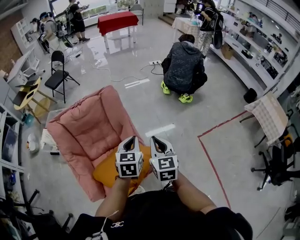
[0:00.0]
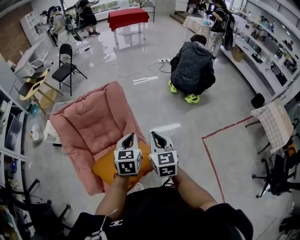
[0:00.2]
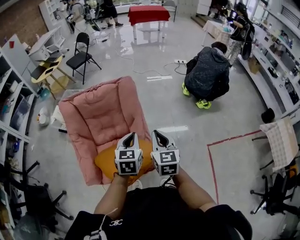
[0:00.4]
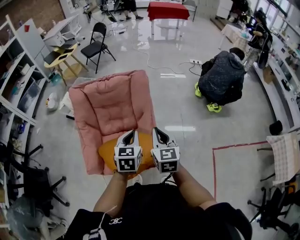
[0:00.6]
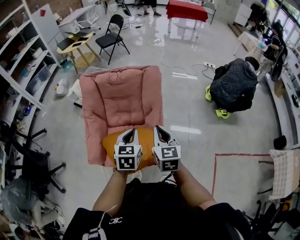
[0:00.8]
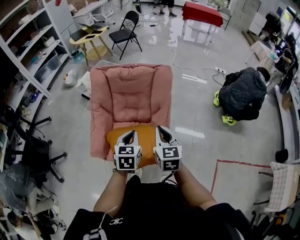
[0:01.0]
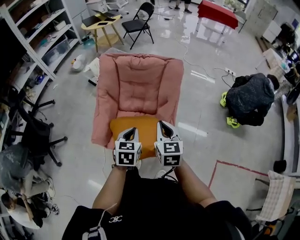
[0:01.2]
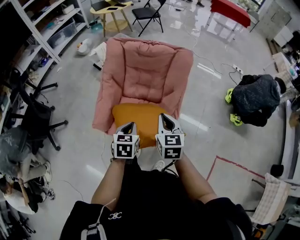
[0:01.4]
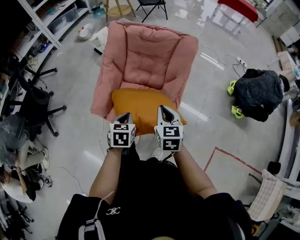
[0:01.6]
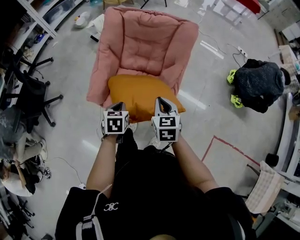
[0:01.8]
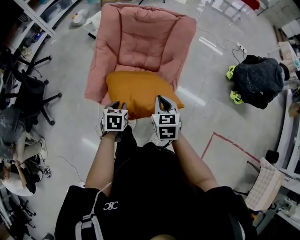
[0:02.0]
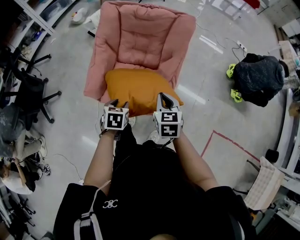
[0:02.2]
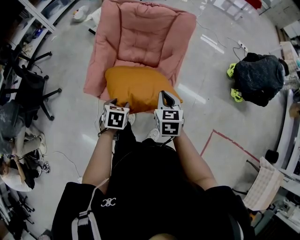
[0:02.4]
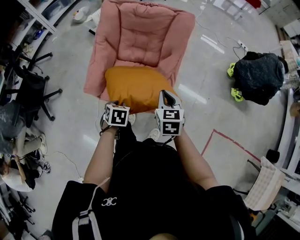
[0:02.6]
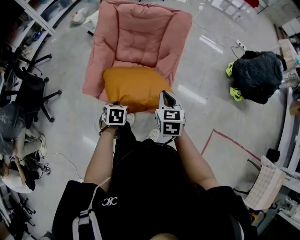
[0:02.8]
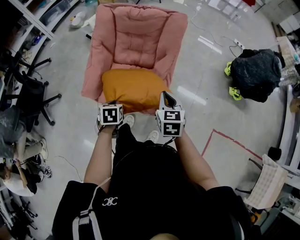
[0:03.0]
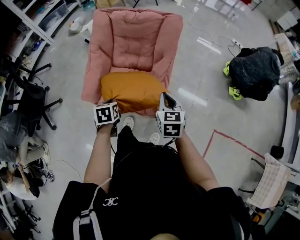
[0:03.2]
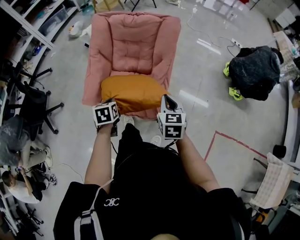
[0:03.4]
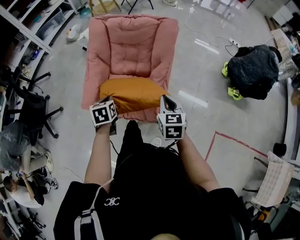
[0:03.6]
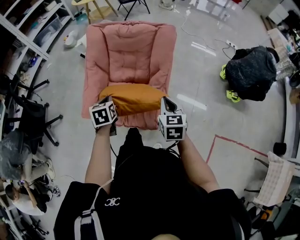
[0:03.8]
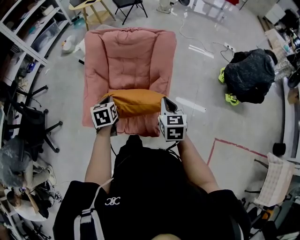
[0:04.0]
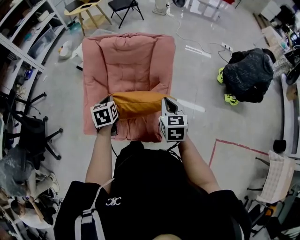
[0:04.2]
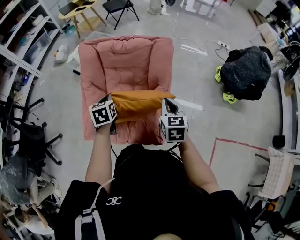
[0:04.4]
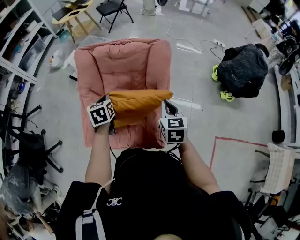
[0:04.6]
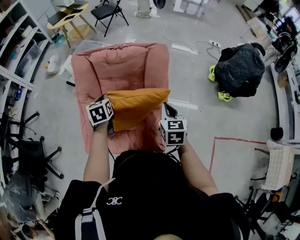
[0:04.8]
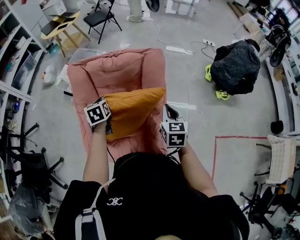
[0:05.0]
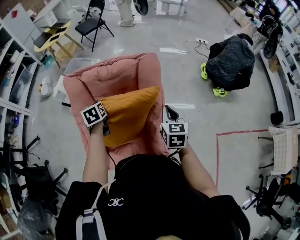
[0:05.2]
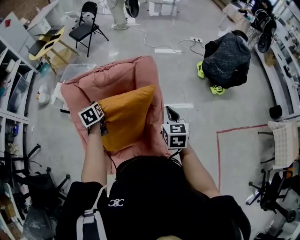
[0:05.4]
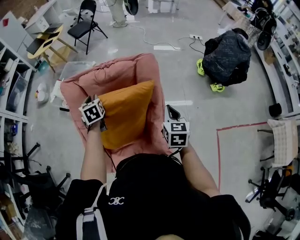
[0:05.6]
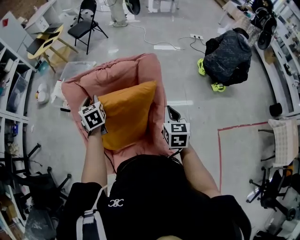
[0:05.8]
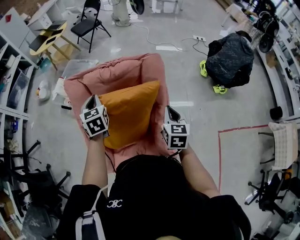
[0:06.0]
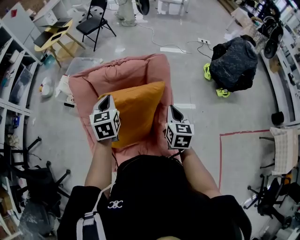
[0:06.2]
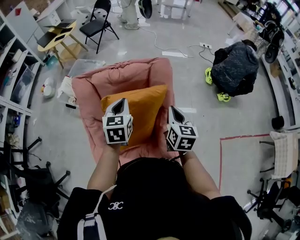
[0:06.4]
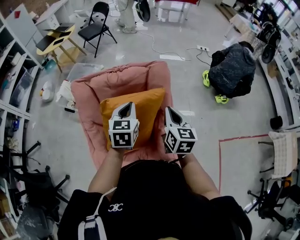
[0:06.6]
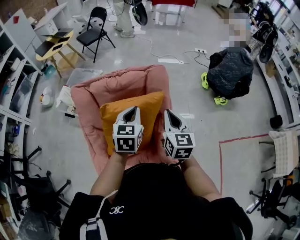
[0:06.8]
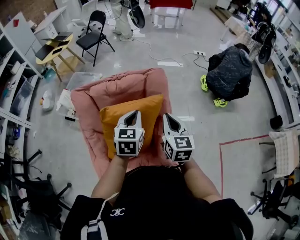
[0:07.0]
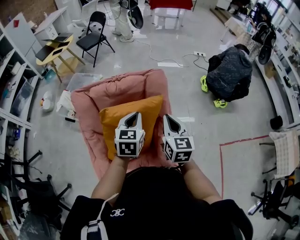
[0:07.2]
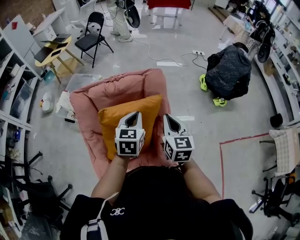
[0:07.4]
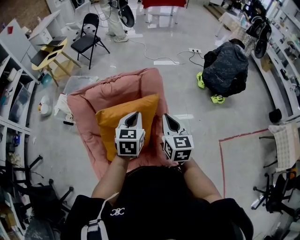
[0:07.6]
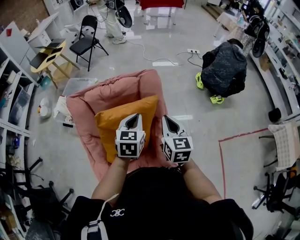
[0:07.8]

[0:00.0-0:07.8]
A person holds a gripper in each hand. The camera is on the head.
0:00.0 to 0:01.6: The left gripper moves approximately 25 cm, and rotates roughly 50 degrees. The right gripper moves approximately 15 cm, and changes its angle by approximately 40 degrees.
0:01.6 to 0:03.2: The left gripper opens, then closes once more, while the right gripper shifts about 10 cm to the right.
0:03.2 to 0:04.6: The left gripper goes some 30 cm forward. Meanwhile the right gripper travels forward by about 15 cm.
0:04.6 to 0:06.2: The right gripper moves forward, some 5 cm, and swivels roughly 20 degrees; the left gripper travels forward and upward by about 15 cm, swivels about 20 degrees, and opens and closes again.
0:06.2 to 0:07.8: The right gripper travels upward by about 5 cm; the left gripper shifts about 15 cm to the right, and turns by roughly 20 degrees.

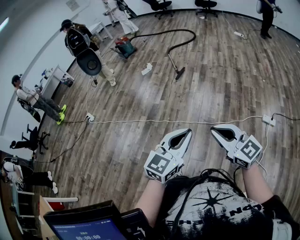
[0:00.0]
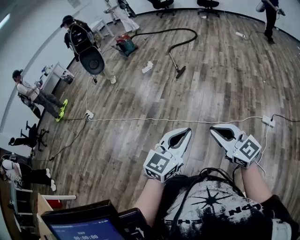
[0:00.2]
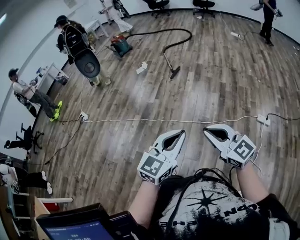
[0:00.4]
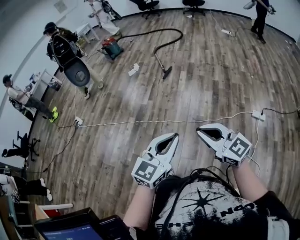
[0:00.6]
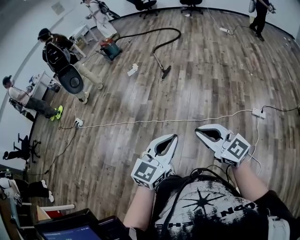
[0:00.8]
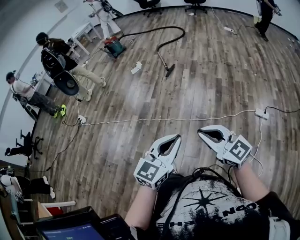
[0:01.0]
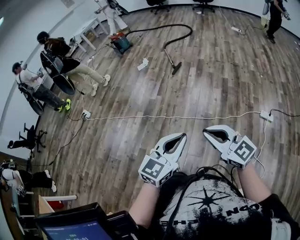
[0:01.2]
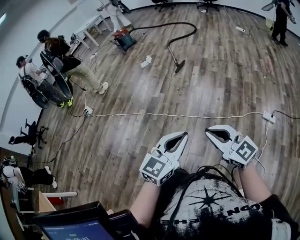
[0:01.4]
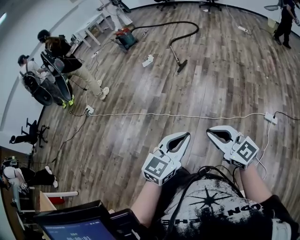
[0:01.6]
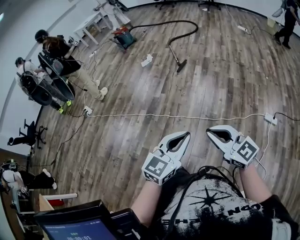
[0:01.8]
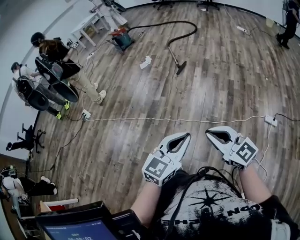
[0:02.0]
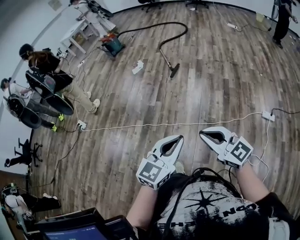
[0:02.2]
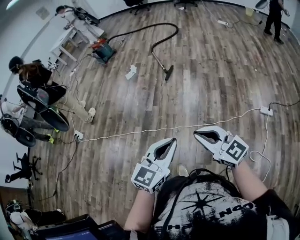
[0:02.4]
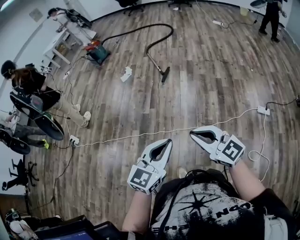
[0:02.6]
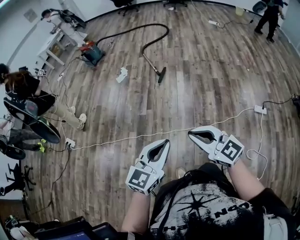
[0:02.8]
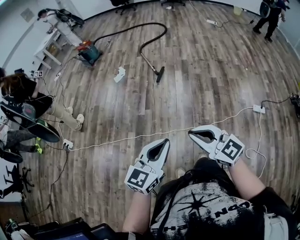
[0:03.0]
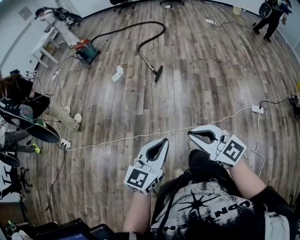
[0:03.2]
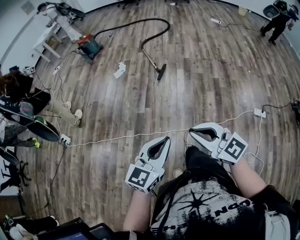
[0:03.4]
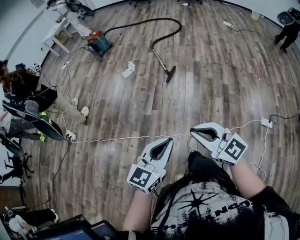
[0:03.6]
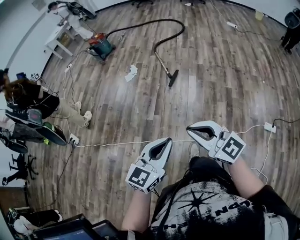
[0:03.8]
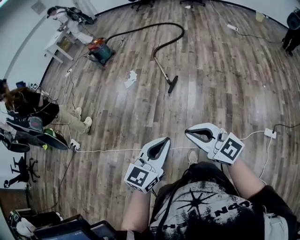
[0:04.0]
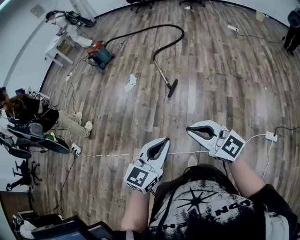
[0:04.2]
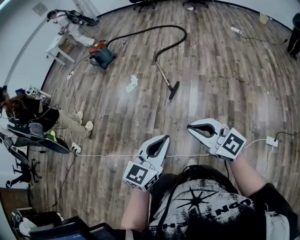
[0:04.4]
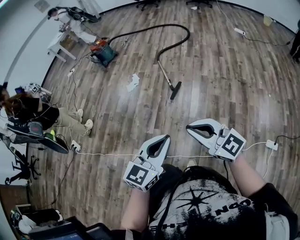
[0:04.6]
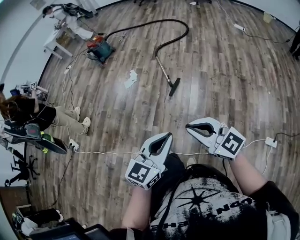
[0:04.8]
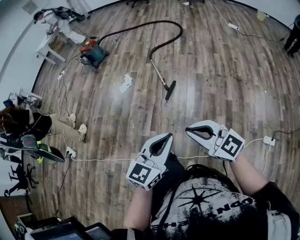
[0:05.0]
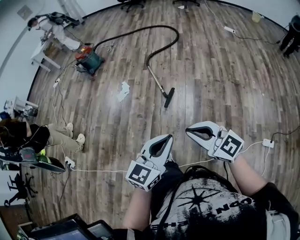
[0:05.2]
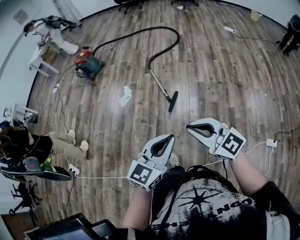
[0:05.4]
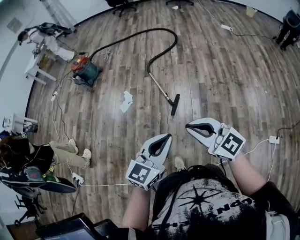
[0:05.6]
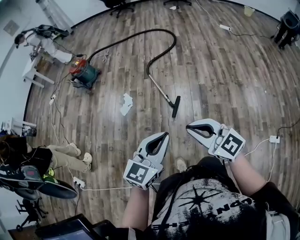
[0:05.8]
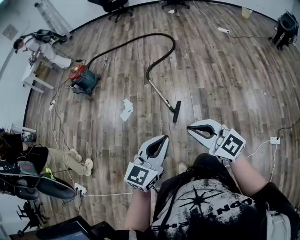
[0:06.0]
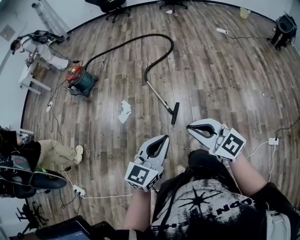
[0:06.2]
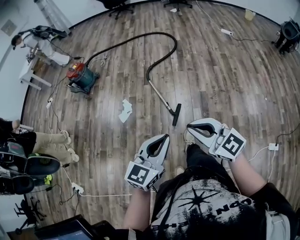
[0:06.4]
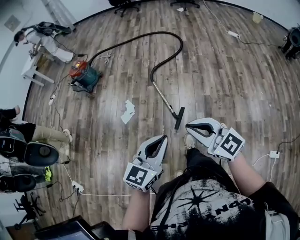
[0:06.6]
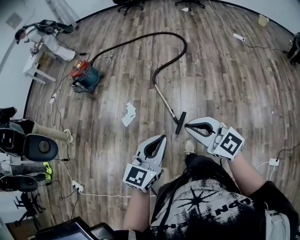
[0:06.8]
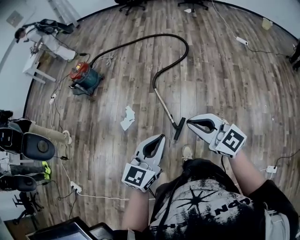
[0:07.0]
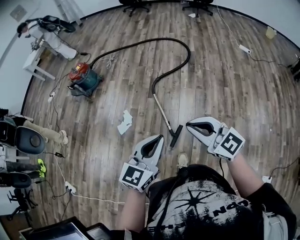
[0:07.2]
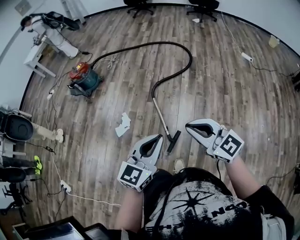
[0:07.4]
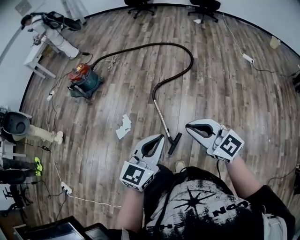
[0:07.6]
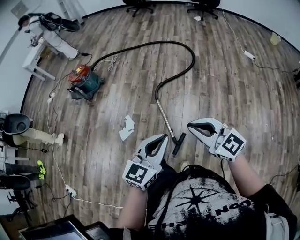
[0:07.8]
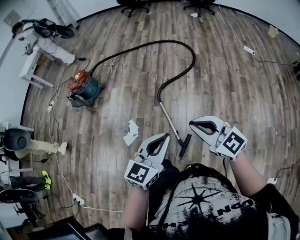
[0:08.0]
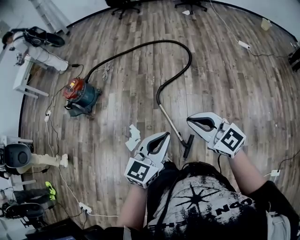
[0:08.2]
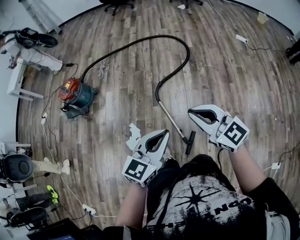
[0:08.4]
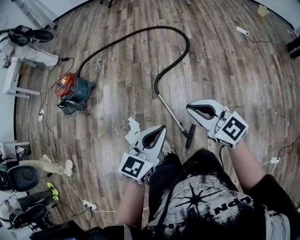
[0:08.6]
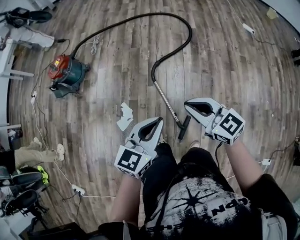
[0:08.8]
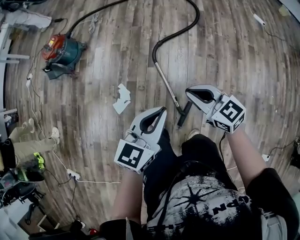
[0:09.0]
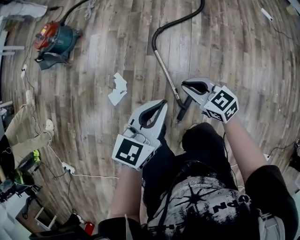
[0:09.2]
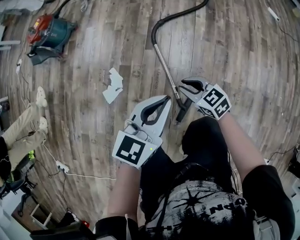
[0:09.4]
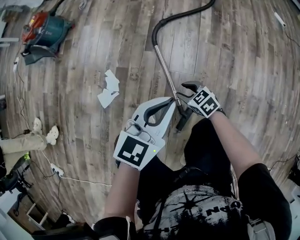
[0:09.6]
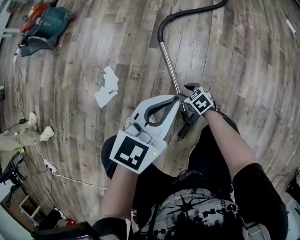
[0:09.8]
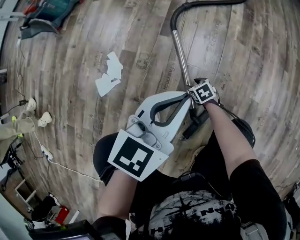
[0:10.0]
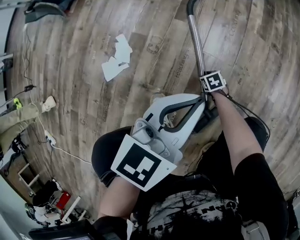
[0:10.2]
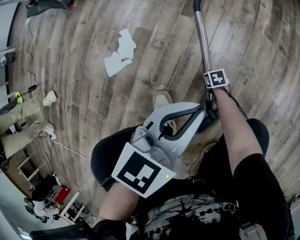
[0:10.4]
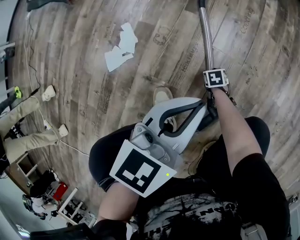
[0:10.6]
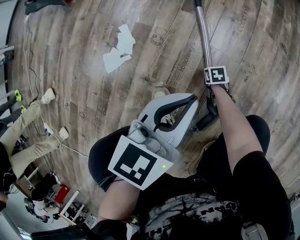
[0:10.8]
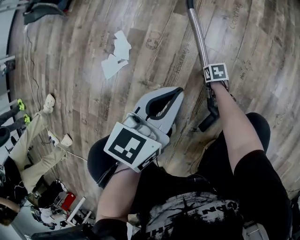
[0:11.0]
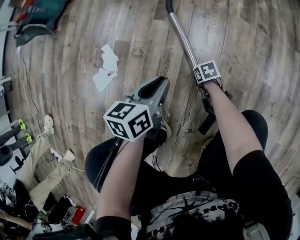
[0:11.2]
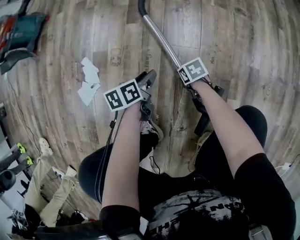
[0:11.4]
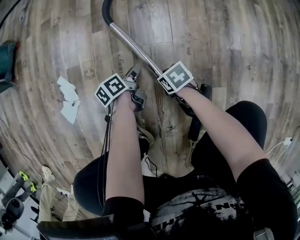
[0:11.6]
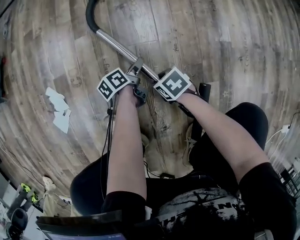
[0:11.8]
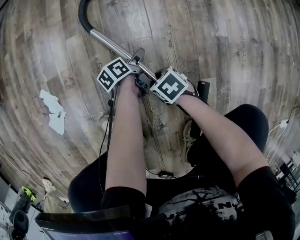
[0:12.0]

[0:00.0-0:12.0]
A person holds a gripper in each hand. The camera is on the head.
0:00.0 to 0:01.6: The grippers stay close to where they were, moving slightly.
0:01.6 to 0:03.0: Both grippers move forward and to the left, approximately 35 cm.
0:03.0 to 0:04.4: Both grippers travel together forward and to the right, approximately 35 cm.
0:04.4 to 0:06.0: The two grippers go roughly 35 cm forward.
0:06.0 to 0:07.6: Both grippers move forward, about 35 cm.
0:07.6 to 0:09.0: The two grippers go roughly 30 cm forward, downward and to the left. The right gripper rotates some 20 degrees.
0:09.0 to 0:10.4: The right gripper shifts about 80 cm downward, tilts its fingers roughly 50 degrees downward, and opens its fingers. The left gripper moves downward, approximately 40 cm.
0:10.4 to 0:12.0: The right gripper shifts by approximately 15 cm. The left gripper goes some 40 cm downward, twists roughly 60 degrees counterclockwise, seen from behind, and opens up.

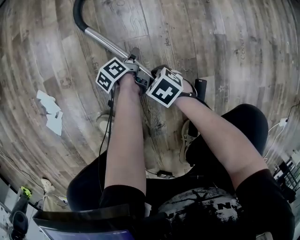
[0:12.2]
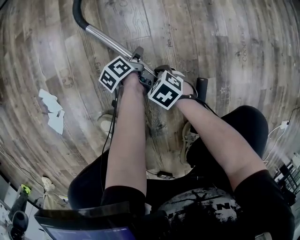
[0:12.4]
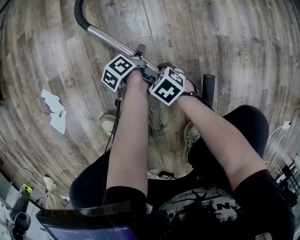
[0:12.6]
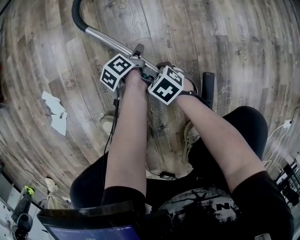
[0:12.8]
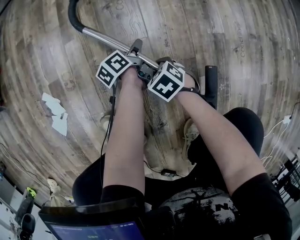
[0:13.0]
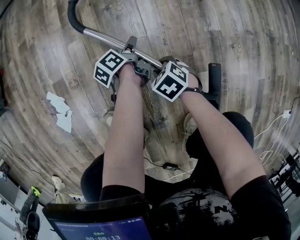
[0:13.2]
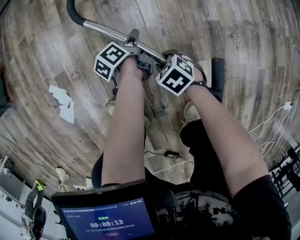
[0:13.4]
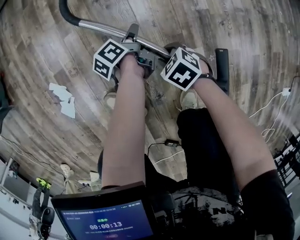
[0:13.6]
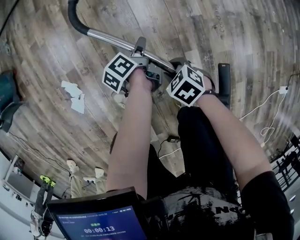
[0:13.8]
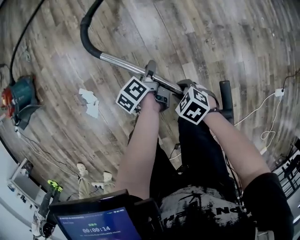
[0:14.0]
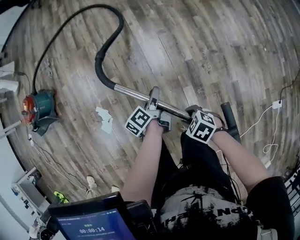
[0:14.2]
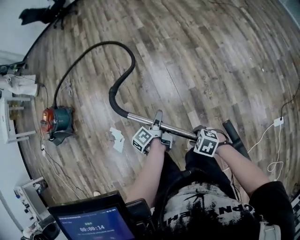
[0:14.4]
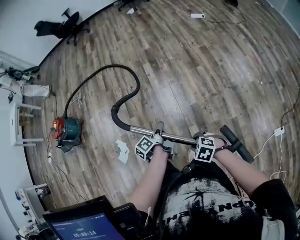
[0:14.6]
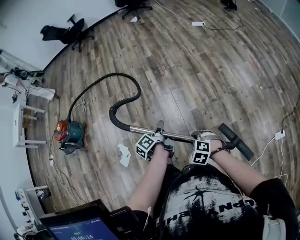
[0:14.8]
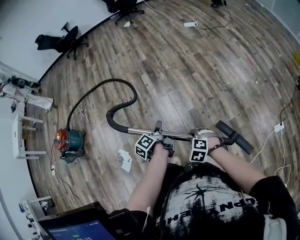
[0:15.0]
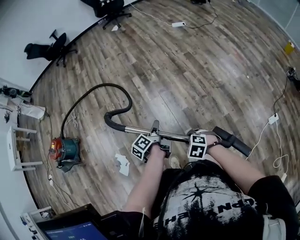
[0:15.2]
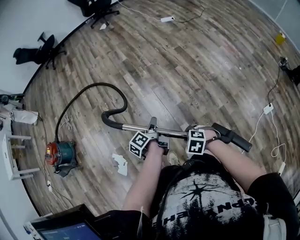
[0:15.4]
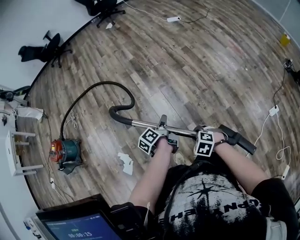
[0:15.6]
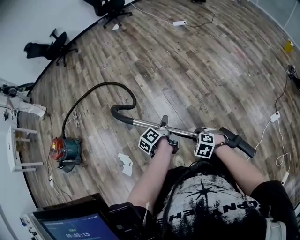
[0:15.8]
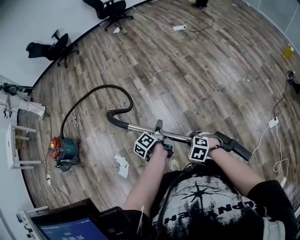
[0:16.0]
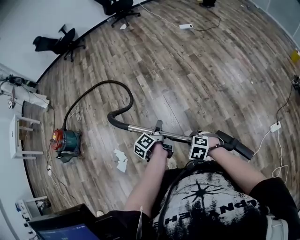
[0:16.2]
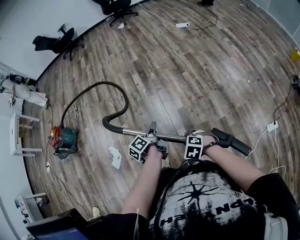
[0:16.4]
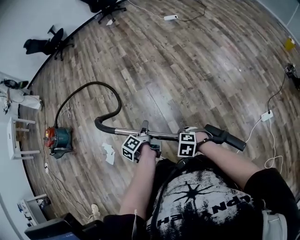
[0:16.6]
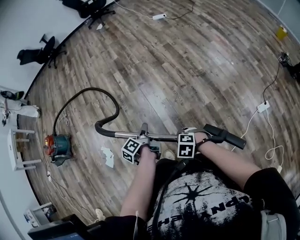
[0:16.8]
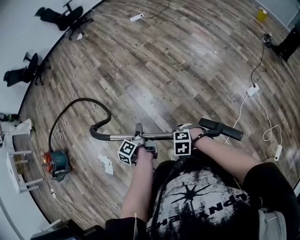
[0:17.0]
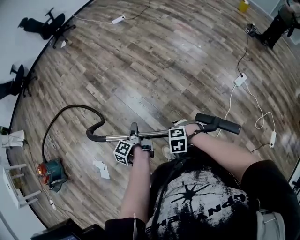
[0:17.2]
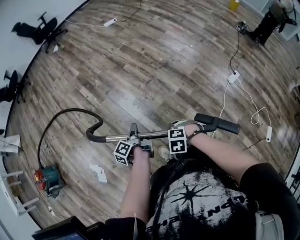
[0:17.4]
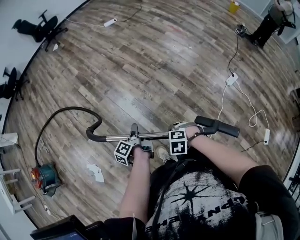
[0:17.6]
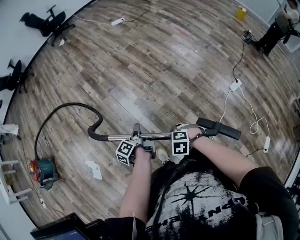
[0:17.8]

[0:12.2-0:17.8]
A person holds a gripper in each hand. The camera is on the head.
0:12.2 to 0:13.6: The right gripper heads upward and to the right, covering roughly 15 cm; the left gripper heads upward, covering about 15 cm.
0:13.6 to 0:15.0: Both grippers move upward, some 60 cm. The right gripper turns by approximately 30 degrees.
0:15.0 to 0:16.4: Both grippers travel together backward and to the right, approximately 10 cm.
0:16.4 to 0:17.8: The right gripper ends up about 20 cm from where it was, while the left gripper ends up roughly 20 cm from where it was.
